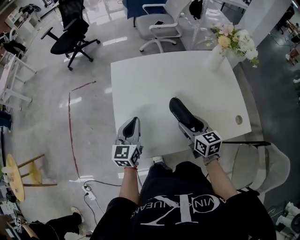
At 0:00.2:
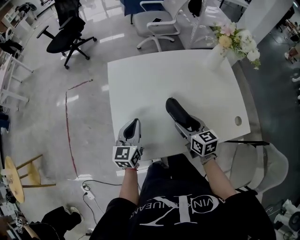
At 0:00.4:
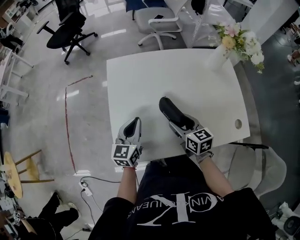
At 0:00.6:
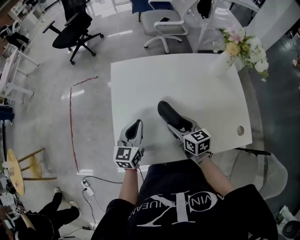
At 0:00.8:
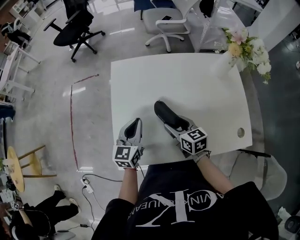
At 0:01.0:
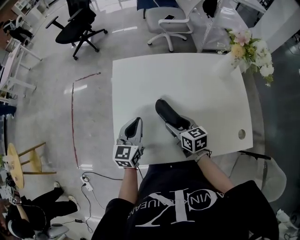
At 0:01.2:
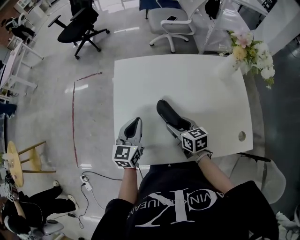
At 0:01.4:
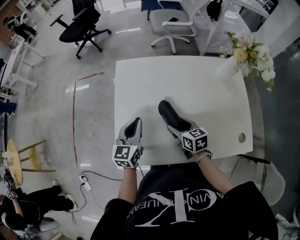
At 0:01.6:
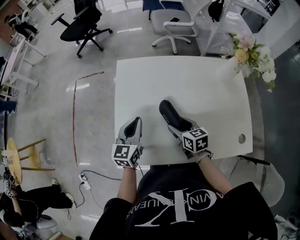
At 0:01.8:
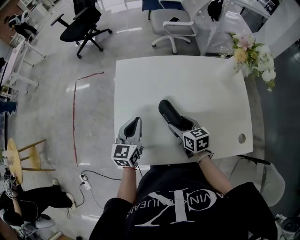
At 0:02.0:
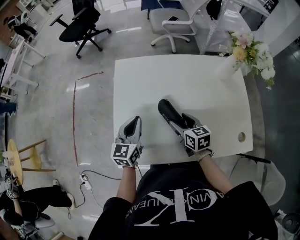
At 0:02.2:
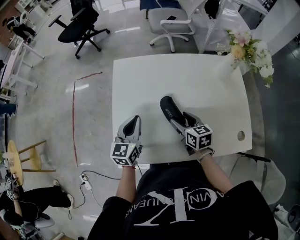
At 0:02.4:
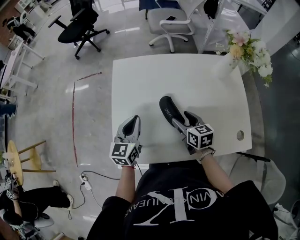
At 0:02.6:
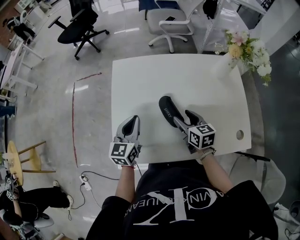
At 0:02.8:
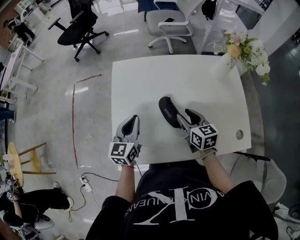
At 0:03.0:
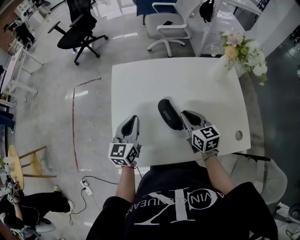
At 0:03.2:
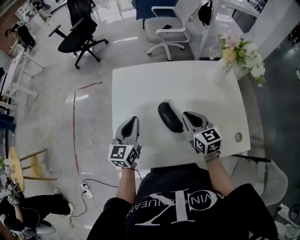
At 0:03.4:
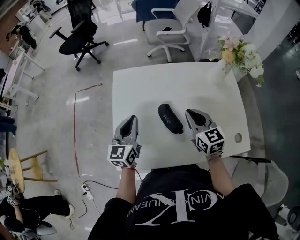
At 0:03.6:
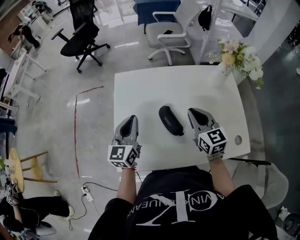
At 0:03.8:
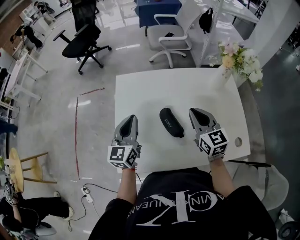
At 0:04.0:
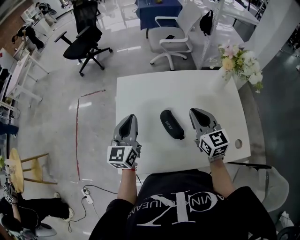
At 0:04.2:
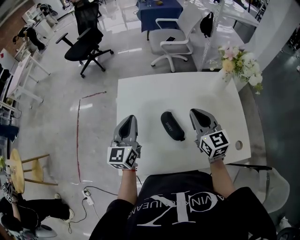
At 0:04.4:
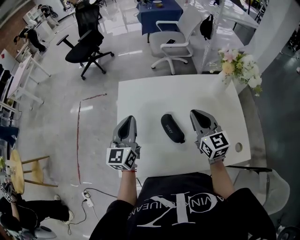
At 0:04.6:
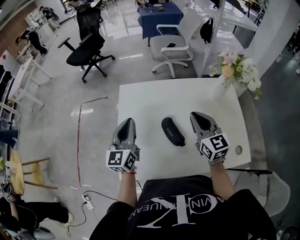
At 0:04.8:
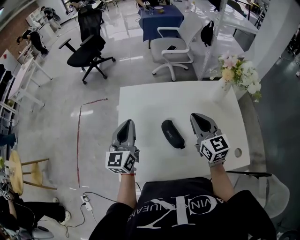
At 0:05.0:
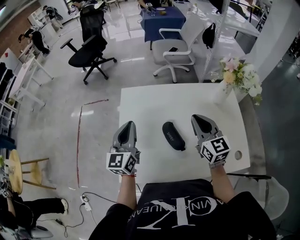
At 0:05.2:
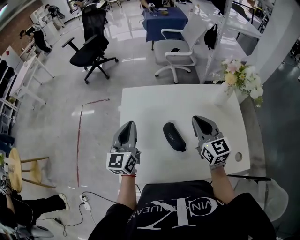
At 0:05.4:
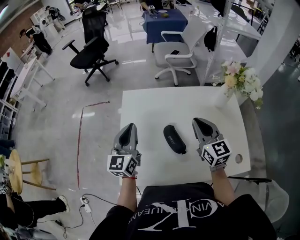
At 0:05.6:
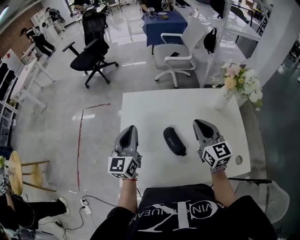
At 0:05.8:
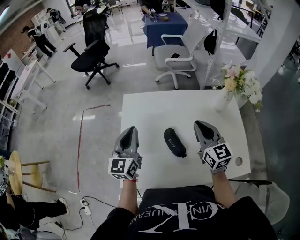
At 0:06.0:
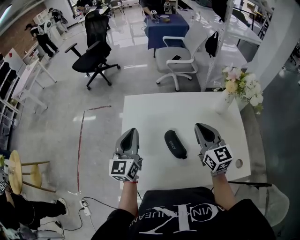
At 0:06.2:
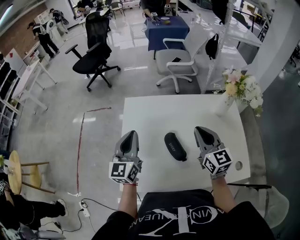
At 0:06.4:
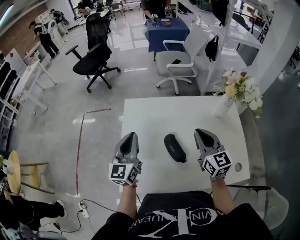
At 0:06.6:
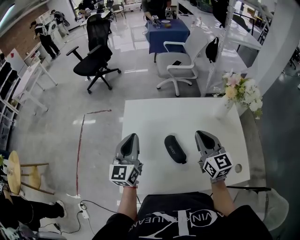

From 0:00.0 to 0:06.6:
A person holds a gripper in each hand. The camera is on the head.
From 0:00.0 to 0:01.6: The right gripper moves forward and downward, approximately 10 cm; the left gripper changes place by roughly 5 cm.
From 0:01.6 to 0:03.2: The right gripper travels upward and to the right by about 10 cm, swivels about 20 degrees, and closes its fingers.
From 0:03.2 to 0:05.0: Both grippers travel together upward, roughly 10 cm.
From 0:05.0 to 0:06.6: The two grippers keep their place.

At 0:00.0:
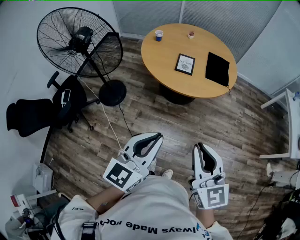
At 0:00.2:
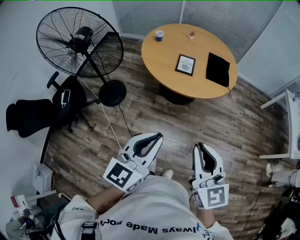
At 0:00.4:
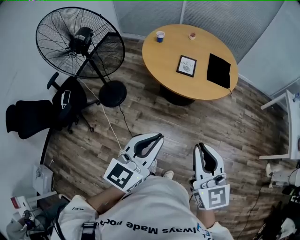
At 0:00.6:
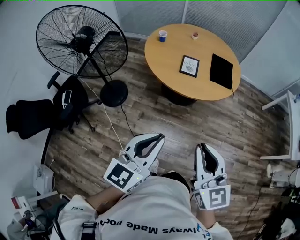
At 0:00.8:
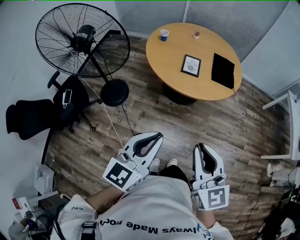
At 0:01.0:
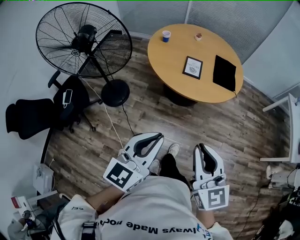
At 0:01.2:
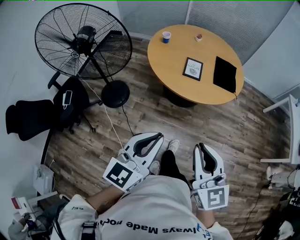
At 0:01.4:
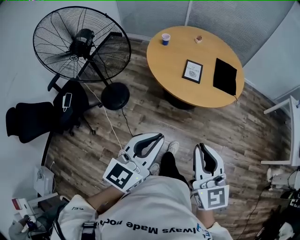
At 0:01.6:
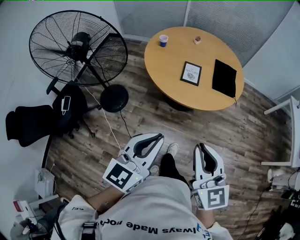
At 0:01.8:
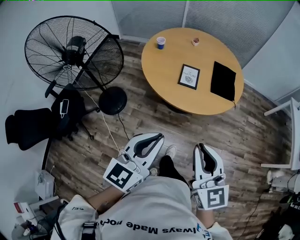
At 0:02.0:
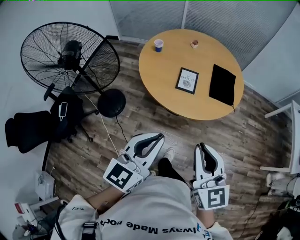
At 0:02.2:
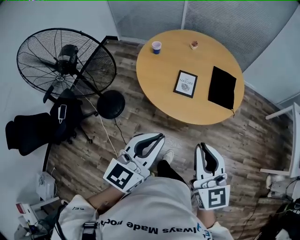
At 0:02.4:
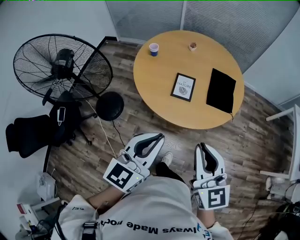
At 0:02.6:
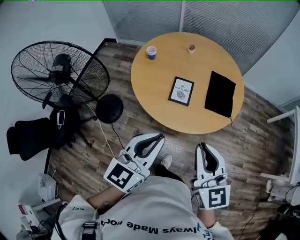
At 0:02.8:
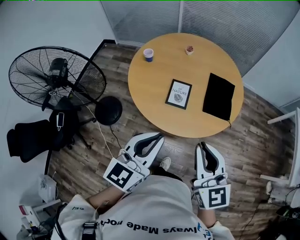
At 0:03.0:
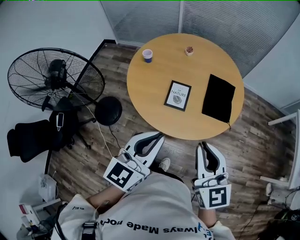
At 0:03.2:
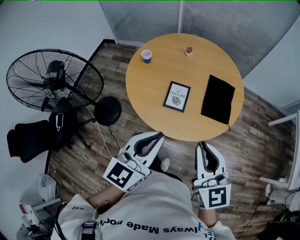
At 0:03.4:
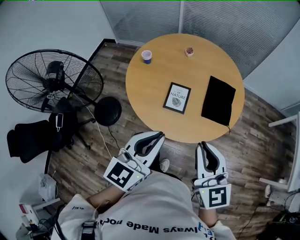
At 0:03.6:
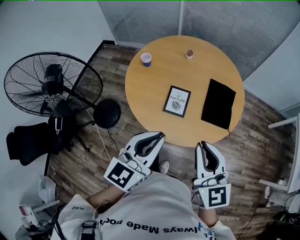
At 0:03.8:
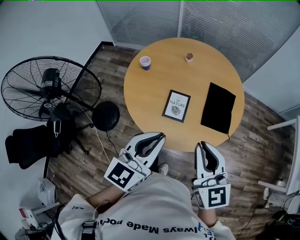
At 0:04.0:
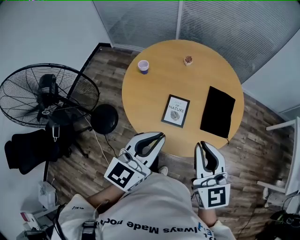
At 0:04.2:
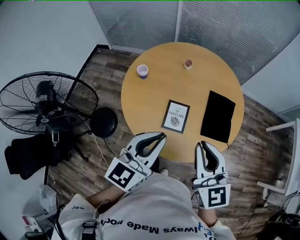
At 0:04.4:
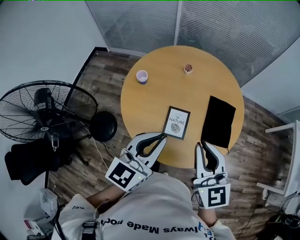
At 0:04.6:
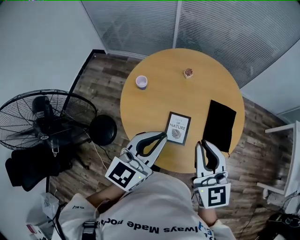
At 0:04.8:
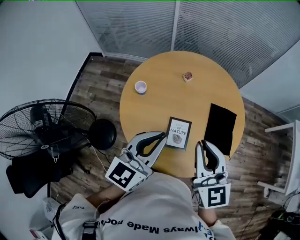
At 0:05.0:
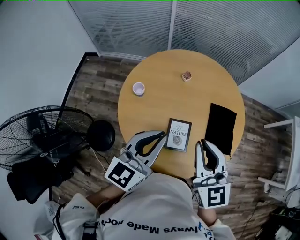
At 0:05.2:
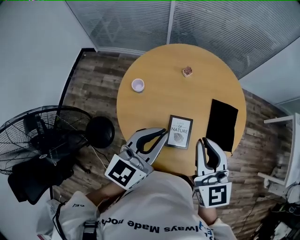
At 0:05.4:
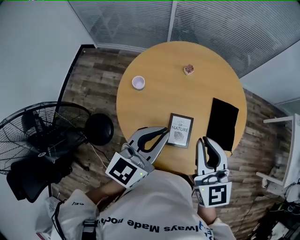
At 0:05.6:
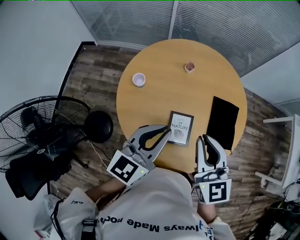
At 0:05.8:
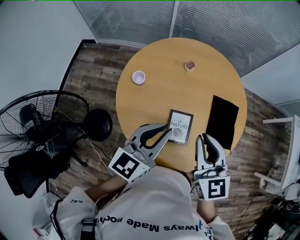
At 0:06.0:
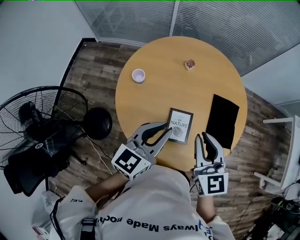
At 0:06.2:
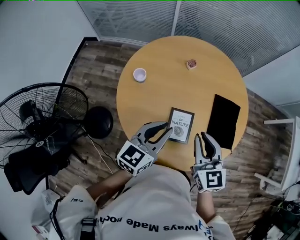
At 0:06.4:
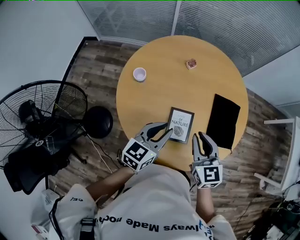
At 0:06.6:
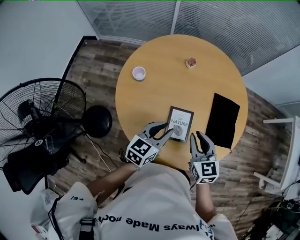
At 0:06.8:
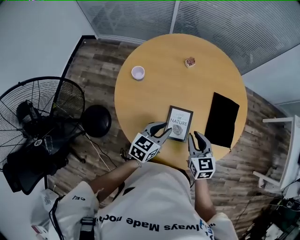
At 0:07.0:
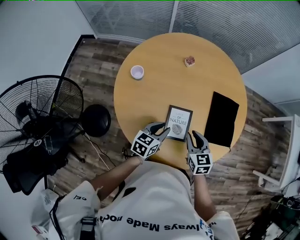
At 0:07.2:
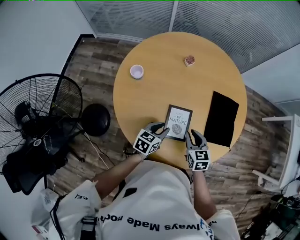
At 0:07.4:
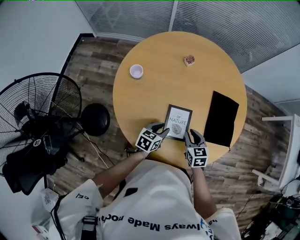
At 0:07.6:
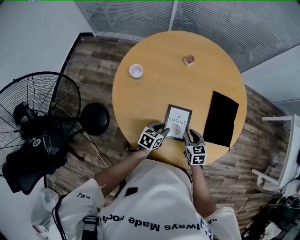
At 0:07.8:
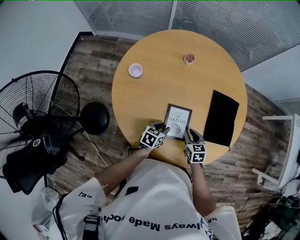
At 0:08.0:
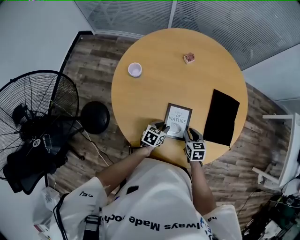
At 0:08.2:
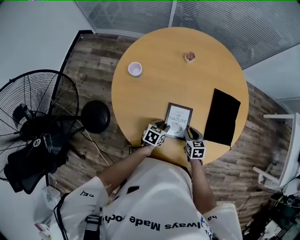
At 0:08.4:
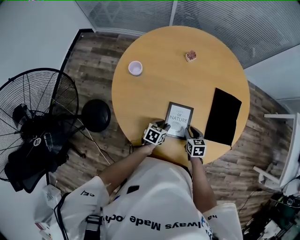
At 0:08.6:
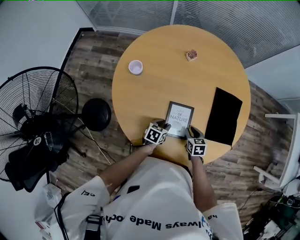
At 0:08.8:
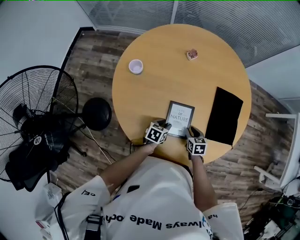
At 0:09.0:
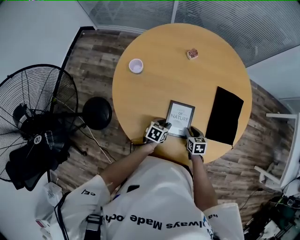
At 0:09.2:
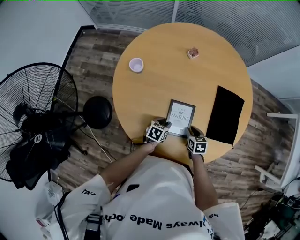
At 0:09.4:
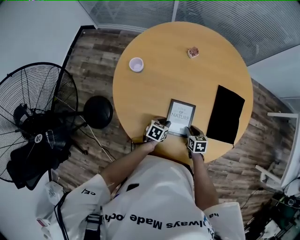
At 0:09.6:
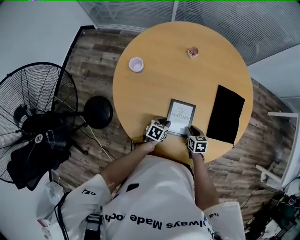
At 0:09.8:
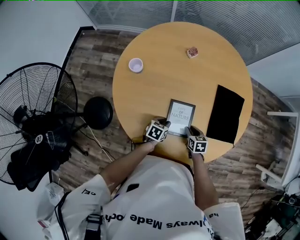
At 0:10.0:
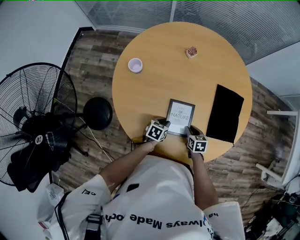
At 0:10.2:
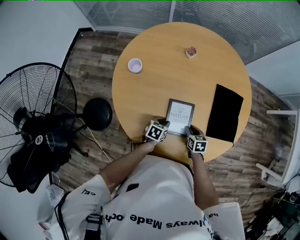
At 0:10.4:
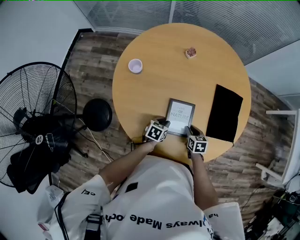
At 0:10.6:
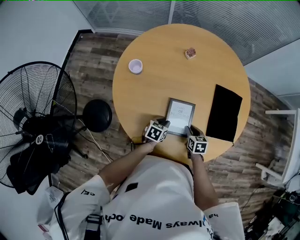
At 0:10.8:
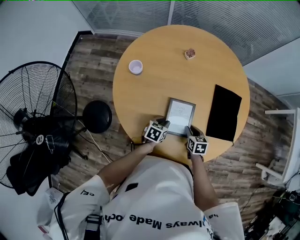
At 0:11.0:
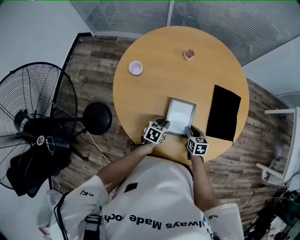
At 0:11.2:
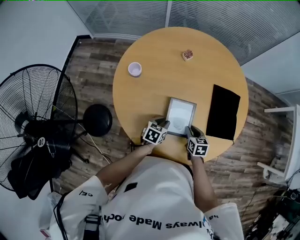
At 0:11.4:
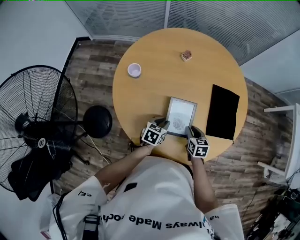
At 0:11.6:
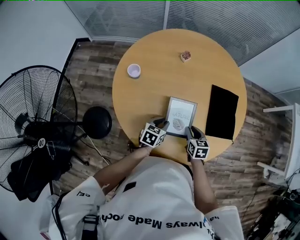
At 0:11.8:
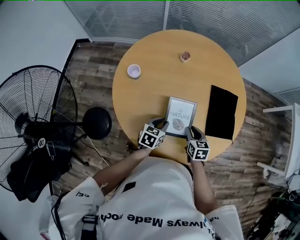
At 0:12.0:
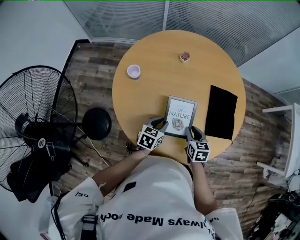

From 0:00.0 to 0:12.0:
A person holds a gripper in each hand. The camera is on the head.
From 0:00.0 to 0:01.6: Both grippers move forward and to the left, about 10 cm.
From 0:01.6 to 0:03.0: Both grippers move forward, some 30 cm.
From 0:03.0 to 0:04.4: Both grippers travel together forward, about 20 cm.
From 0:04.4 to 0:06.0: Both grippers move forward, downward and to the left, roughly 15 cm.
From 0:06.0 to 0:07.6: The two grippers go roughly 30 cm downward. The right gripper turns by about 30 degrees. The left gripper tips its fingers downward by approximately 30 degrees.
From 0:07.6 to 0:09.0: Both grippers move downward, about 10 cm.
From 0:09.0 to 0:10.4: Neither gripper changes place.
From 0:10.4 to 0:12.0: Both grippers travel together upward, approximately 10 cm.

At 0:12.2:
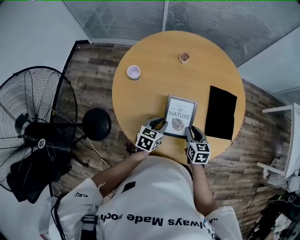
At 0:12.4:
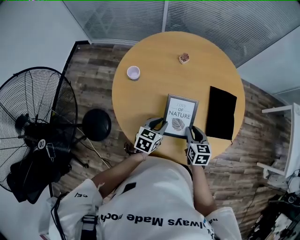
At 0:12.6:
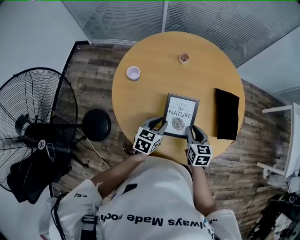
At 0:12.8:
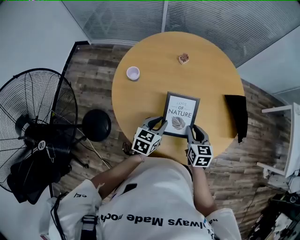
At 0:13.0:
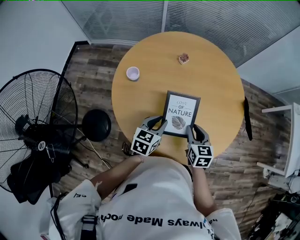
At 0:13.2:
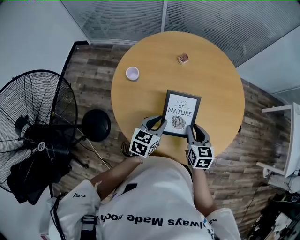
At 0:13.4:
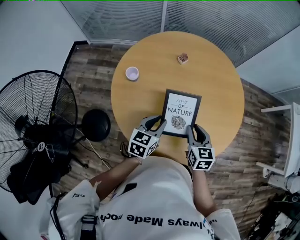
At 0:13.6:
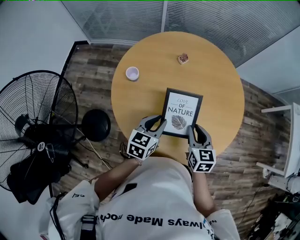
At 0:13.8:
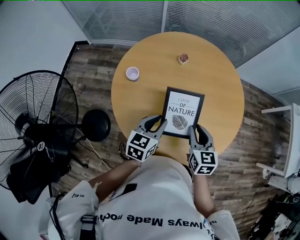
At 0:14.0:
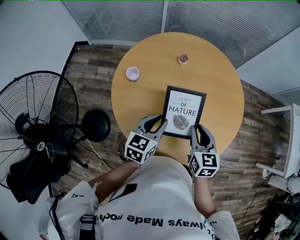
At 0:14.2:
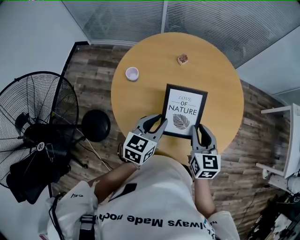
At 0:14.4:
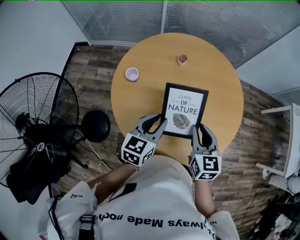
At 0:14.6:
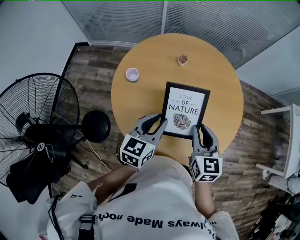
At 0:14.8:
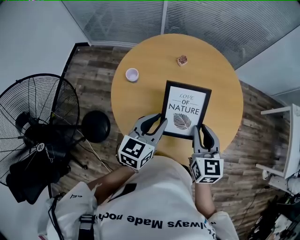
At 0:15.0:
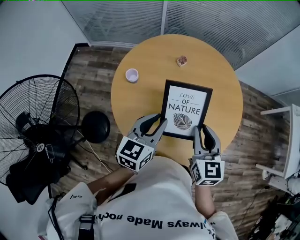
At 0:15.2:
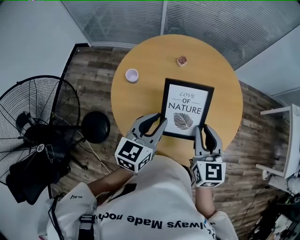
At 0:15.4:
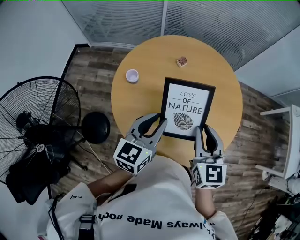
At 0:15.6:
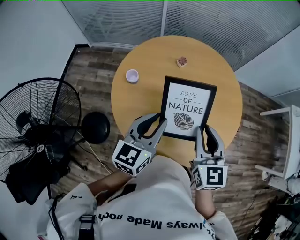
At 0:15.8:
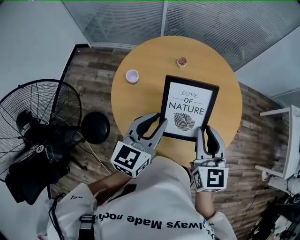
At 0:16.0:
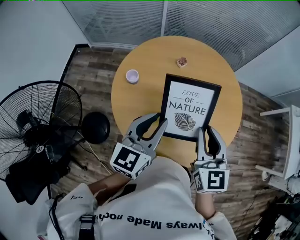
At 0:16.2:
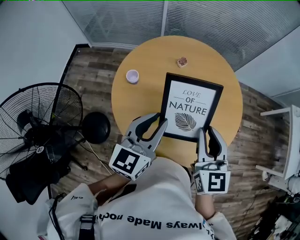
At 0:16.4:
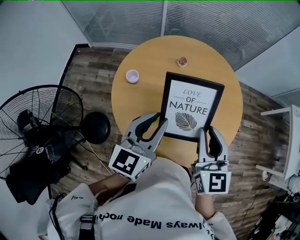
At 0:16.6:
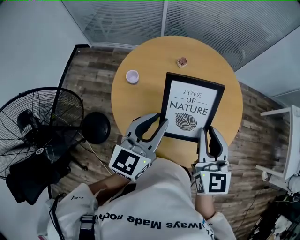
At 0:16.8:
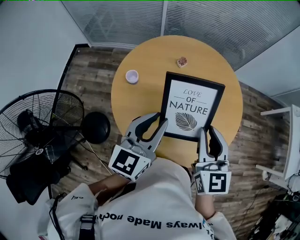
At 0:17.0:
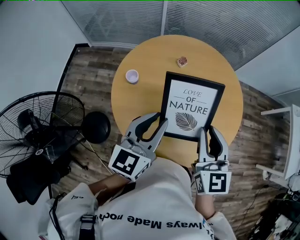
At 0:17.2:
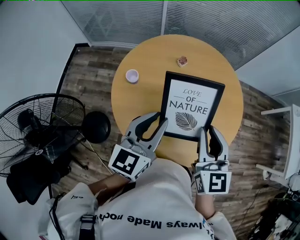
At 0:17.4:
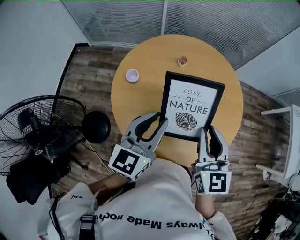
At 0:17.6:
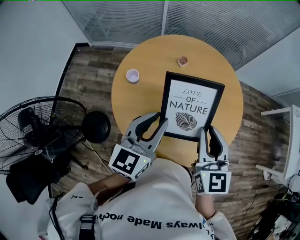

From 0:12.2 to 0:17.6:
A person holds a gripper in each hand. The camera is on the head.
From 0:12.2 to 0:13.6: The two grippers go roughly 10 cm upward.
From 0:13.6 to 0:15.0: The grippers both shift upward by about 10 cm.
From 0:15.0 to 0:16.2: The grippers both shift upward by some 5 cm.
From 0:16.2 to 0:17.6: Both grippers stay about where they are.
